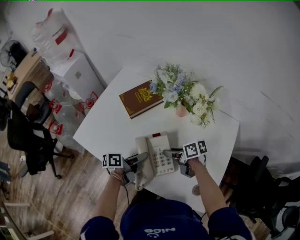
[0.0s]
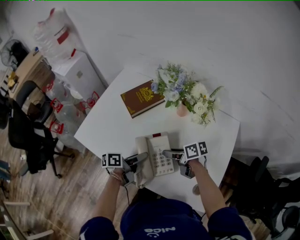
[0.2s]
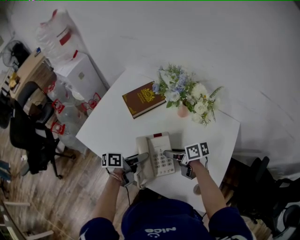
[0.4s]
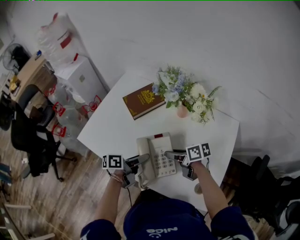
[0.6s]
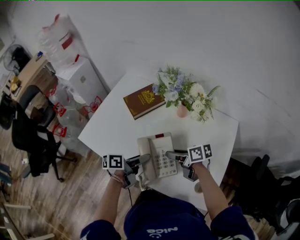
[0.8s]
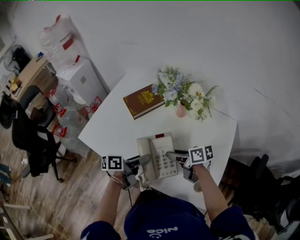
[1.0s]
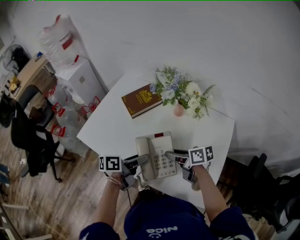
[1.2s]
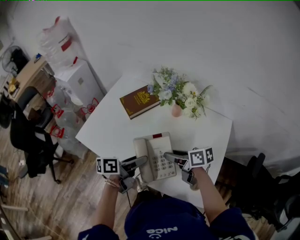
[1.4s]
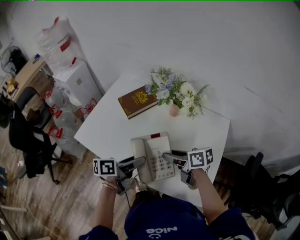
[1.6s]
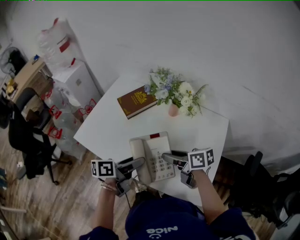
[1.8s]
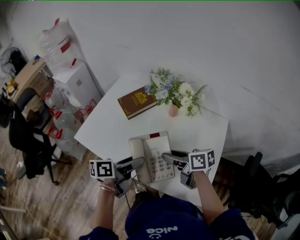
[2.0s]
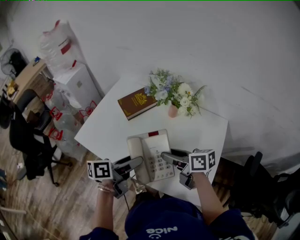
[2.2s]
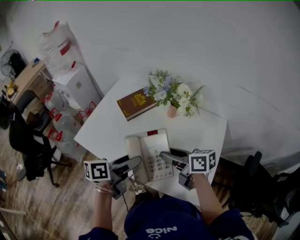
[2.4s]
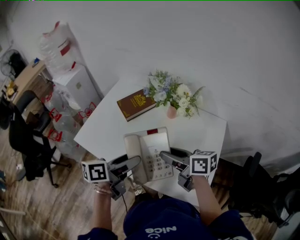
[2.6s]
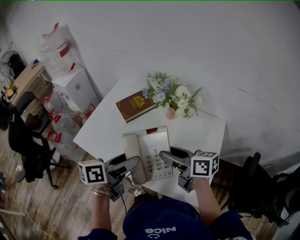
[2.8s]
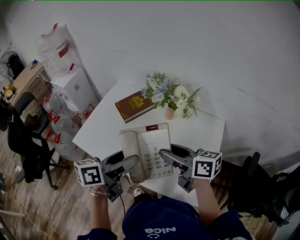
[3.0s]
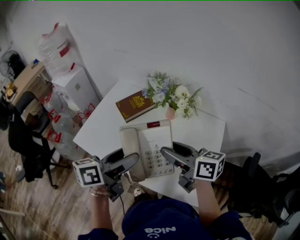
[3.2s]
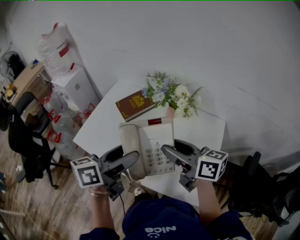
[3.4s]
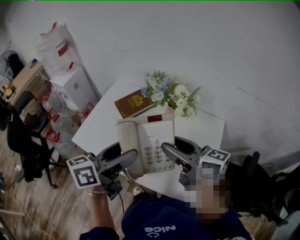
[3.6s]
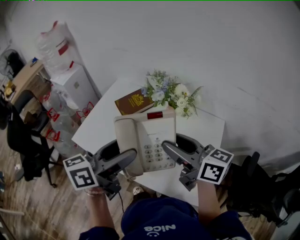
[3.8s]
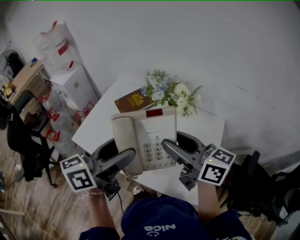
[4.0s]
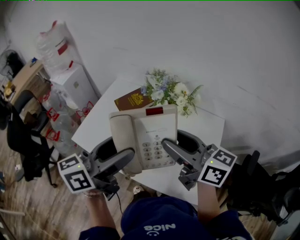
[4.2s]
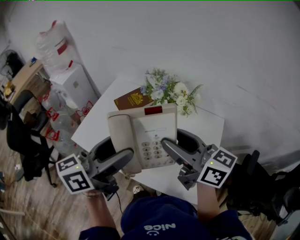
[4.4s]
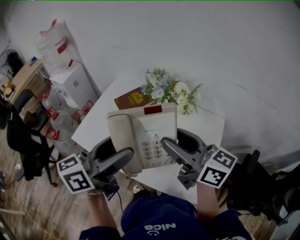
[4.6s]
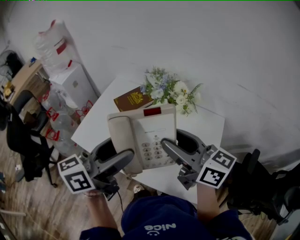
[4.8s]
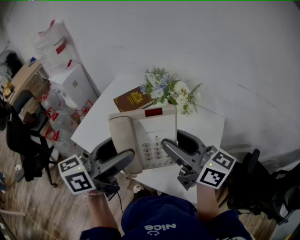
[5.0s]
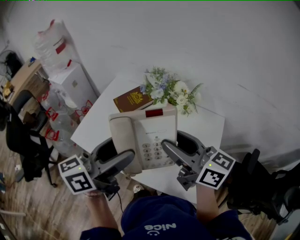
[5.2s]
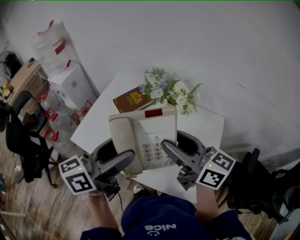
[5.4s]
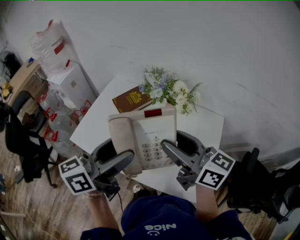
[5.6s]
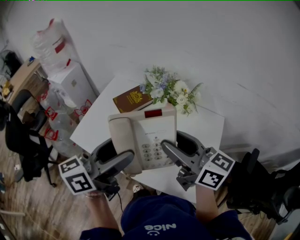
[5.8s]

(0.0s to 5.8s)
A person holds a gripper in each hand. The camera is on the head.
0.0s - 1.4s: Both grippers travel together upward, roughly 10 cm.
1.4s - 2.8s: Both grippers move upward, roughly 10 cm.
2.8s - 4.4s: Both grippers move upward, approximately 15 cm. The left gripper swivels about 30 degrees; the right gripper turns by roughly 30 degrees.
4.4s - 5.8s: There are only small adjustments of the grippers.

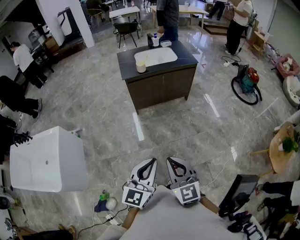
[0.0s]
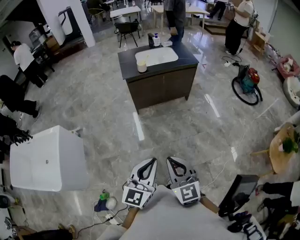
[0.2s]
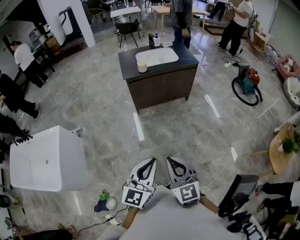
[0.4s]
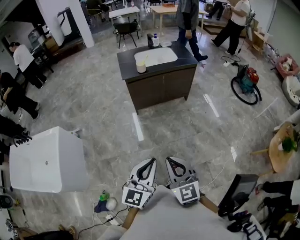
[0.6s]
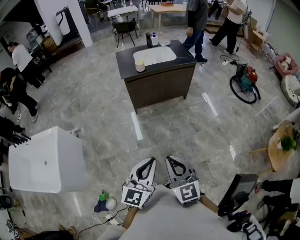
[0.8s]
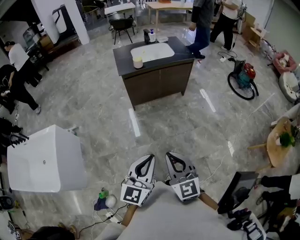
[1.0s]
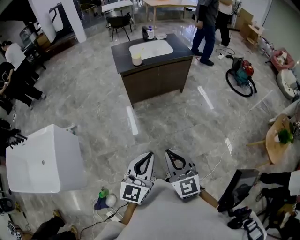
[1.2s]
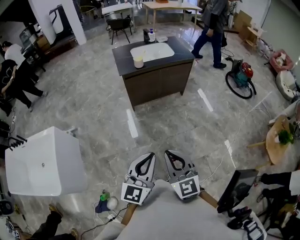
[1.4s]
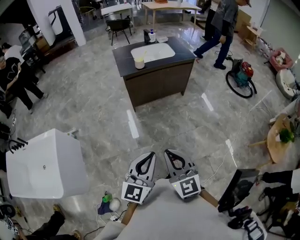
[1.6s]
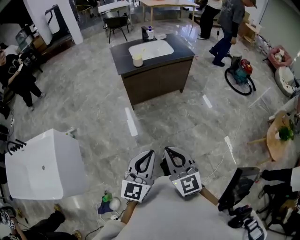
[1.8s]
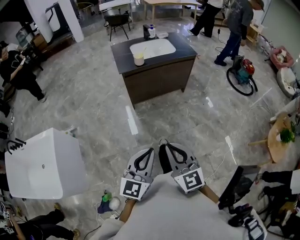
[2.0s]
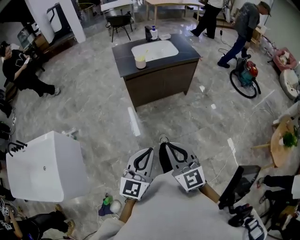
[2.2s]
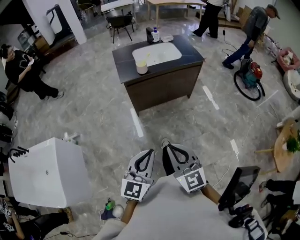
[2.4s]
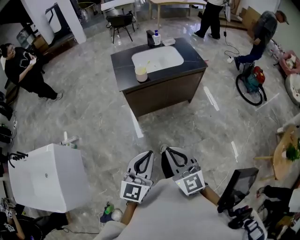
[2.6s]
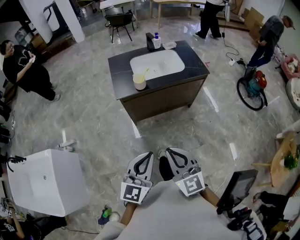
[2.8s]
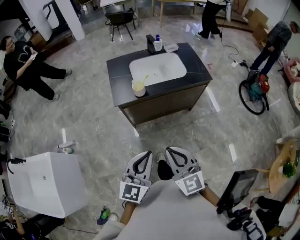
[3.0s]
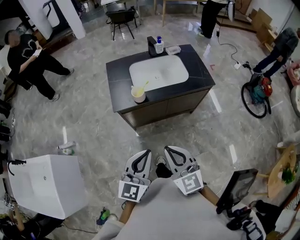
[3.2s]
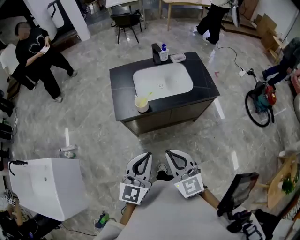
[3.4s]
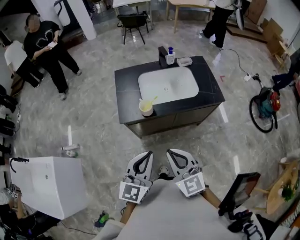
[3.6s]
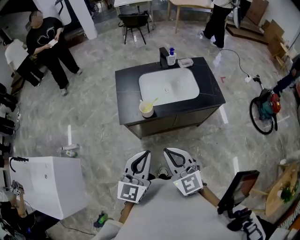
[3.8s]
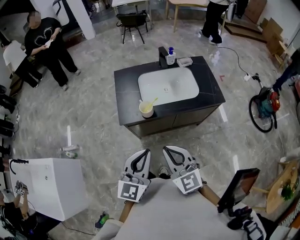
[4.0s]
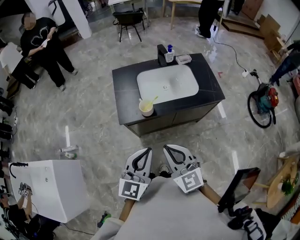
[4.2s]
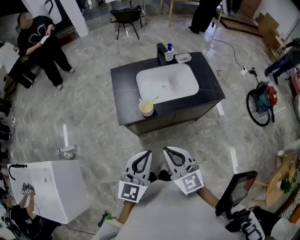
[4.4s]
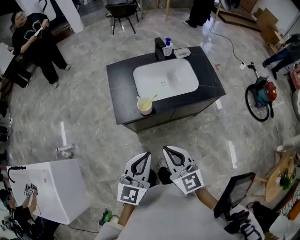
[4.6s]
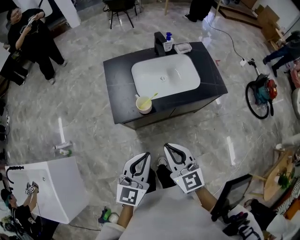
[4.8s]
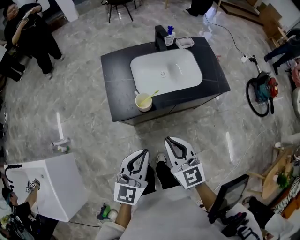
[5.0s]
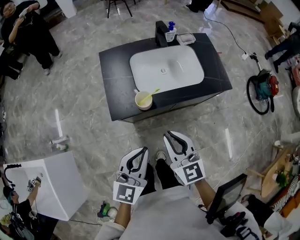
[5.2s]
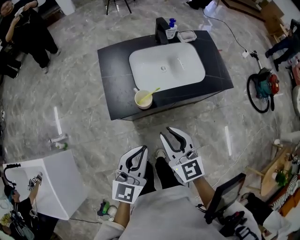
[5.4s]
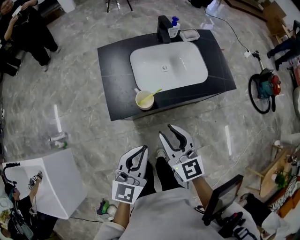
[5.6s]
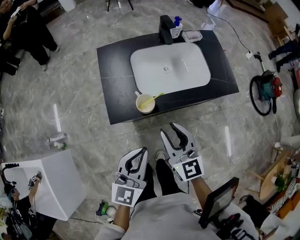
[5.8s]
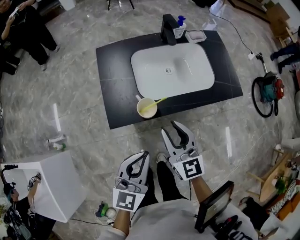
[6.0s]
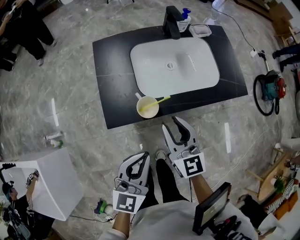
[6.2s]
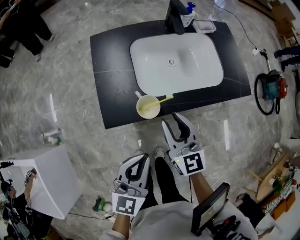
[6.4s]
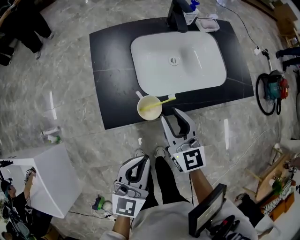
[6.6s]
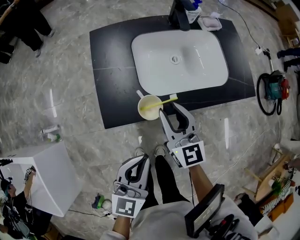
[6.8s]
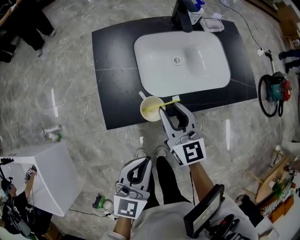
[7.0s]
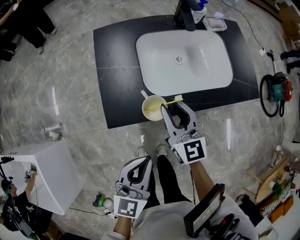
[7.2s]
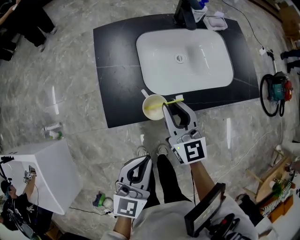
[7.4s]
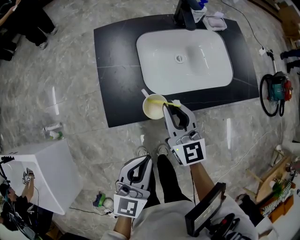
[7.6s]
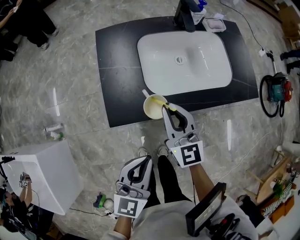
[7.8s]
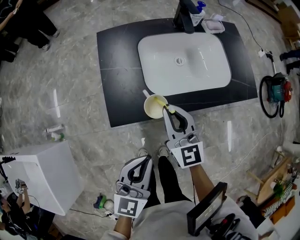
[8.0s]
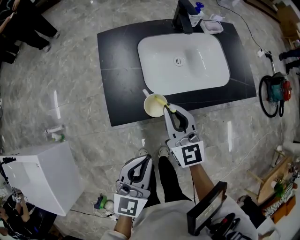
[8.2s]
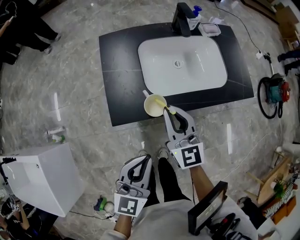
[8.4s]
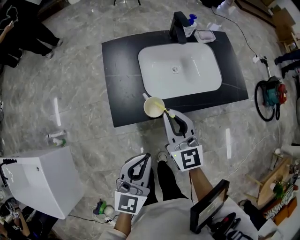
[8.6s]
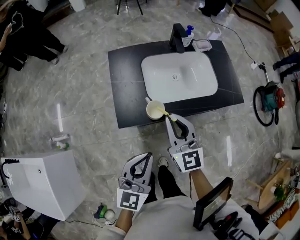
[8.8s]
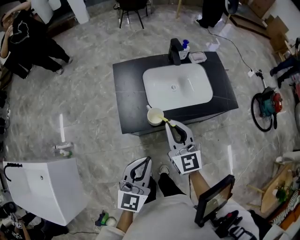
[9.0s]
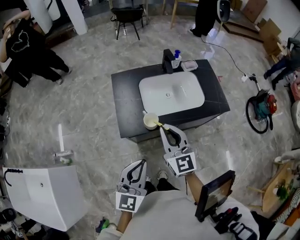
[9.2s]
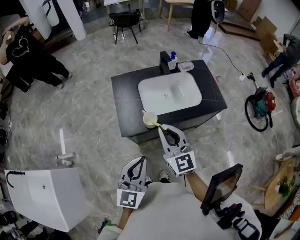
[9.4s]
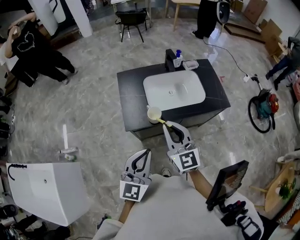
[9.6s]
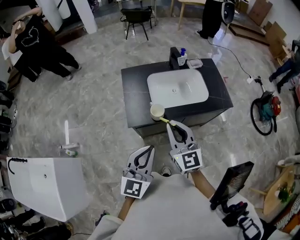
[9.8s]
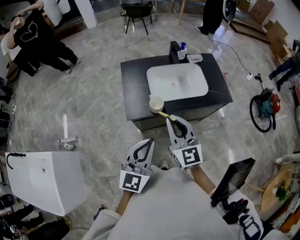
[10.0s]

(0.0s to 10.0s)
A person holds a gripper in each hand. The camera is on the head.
0.0s - 1.4s: The left gripper moves approximately 5 cm; the right gripper changes place by about 5 cm.
1.4s - 2.8s: The two grippers go some 25 cm forward.
2.8s - 4.2s: Both grippers travel together forward, about 20 cm.
4.2s - 5.8s: The left gripper moves downward and forward, about 10 cm. Meanwhile the right gripper moves forward and downward, approximately 15 cm, rotates approximately 20 degrees, and opens up.
5.8s - 7.2s: The left gripper goes about 10 cm downward. Meanwhile the right gripper goes about 15 cm forward and downward.
7.2s - 8.6s: The right gripper goes approximately 5 cm upward, and closes up.
8.6s - 10.0s: The left gripper heads upward, covering some 10 cm, and swivels some 20 degrees. The right gripper shifts about 15 cm upward and backward.

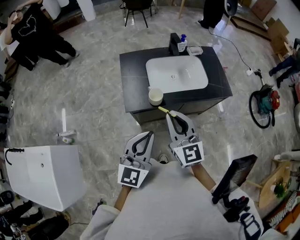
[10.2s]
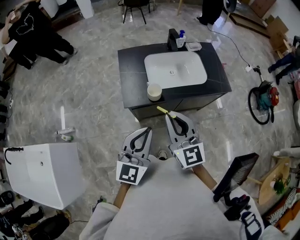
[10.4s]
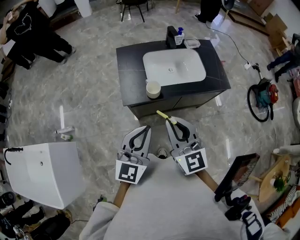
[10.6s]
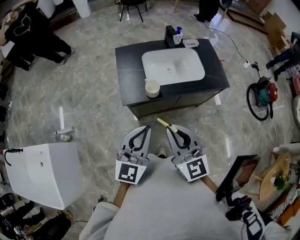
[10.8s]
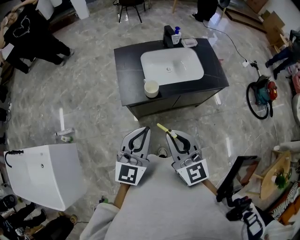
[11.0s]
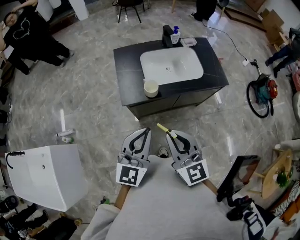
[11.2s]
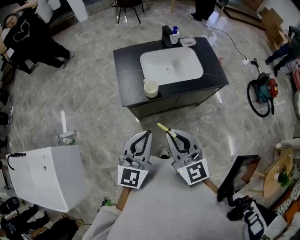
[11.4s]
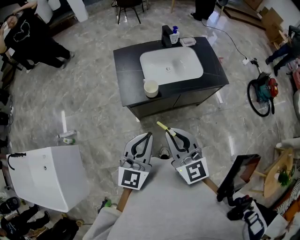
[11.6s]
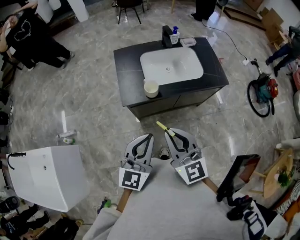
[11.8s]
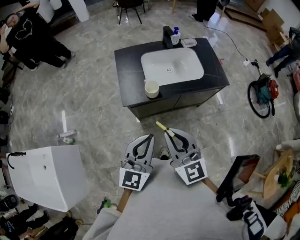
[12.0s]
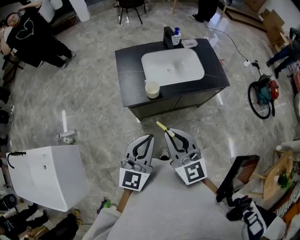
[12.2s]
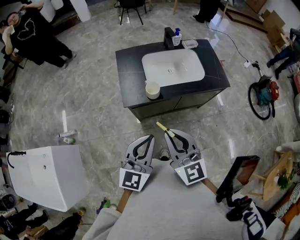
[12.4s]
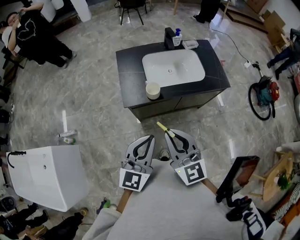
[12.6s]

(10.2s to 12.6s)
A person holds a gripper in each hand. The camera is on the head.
10.2s - 11.4s: The right gripper goes roughly 10 cm backward.
11.4s - 12.6s: The grippers move only a little.

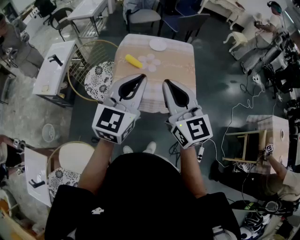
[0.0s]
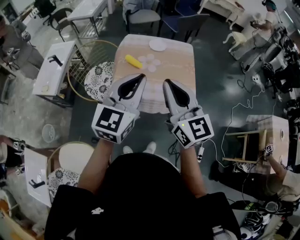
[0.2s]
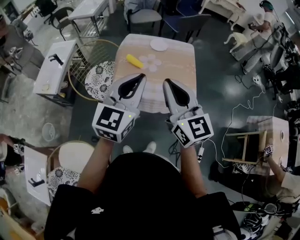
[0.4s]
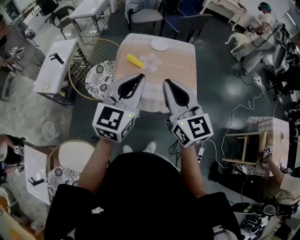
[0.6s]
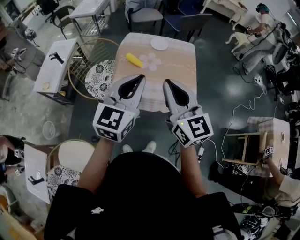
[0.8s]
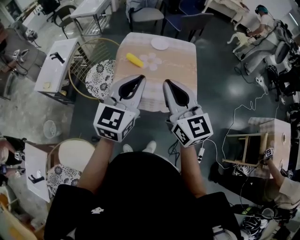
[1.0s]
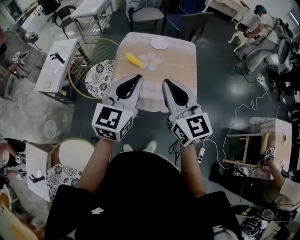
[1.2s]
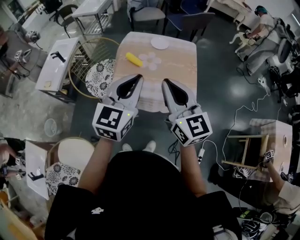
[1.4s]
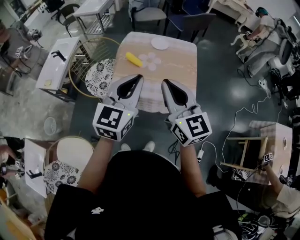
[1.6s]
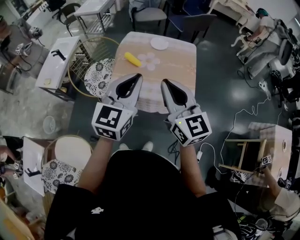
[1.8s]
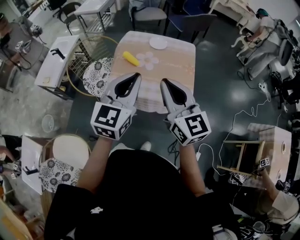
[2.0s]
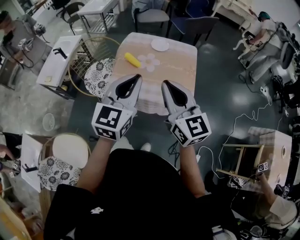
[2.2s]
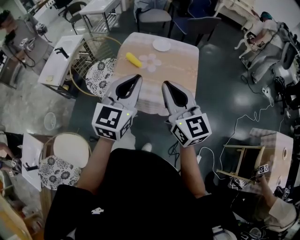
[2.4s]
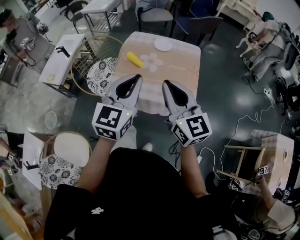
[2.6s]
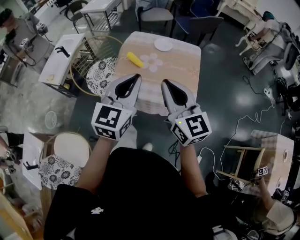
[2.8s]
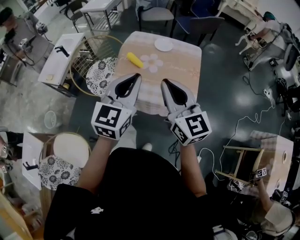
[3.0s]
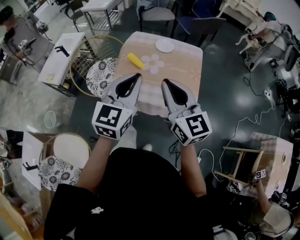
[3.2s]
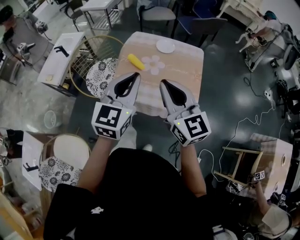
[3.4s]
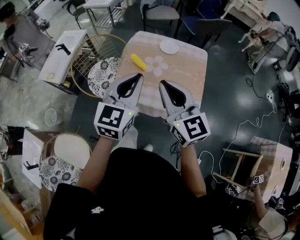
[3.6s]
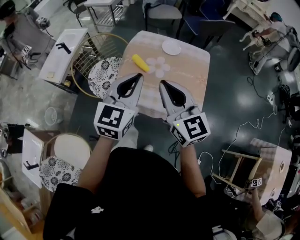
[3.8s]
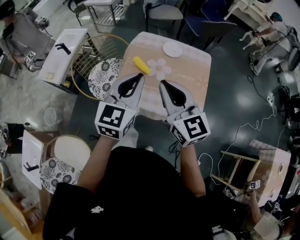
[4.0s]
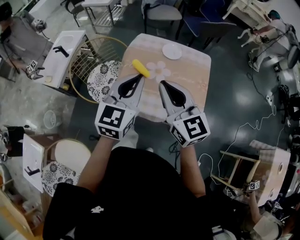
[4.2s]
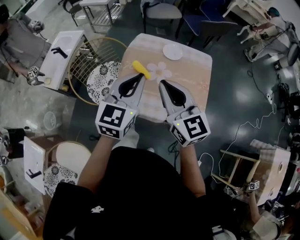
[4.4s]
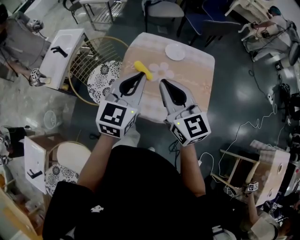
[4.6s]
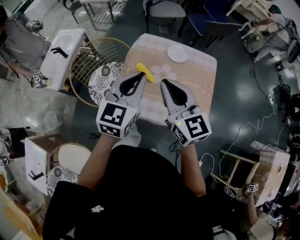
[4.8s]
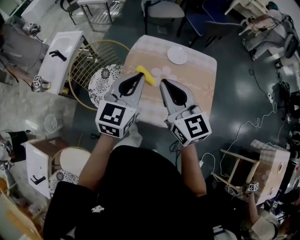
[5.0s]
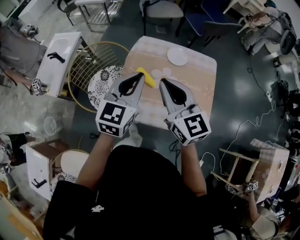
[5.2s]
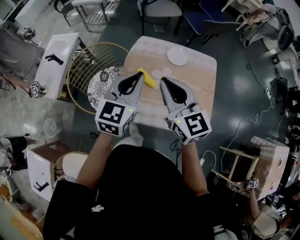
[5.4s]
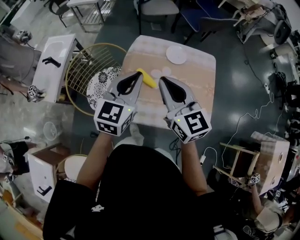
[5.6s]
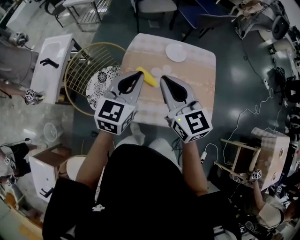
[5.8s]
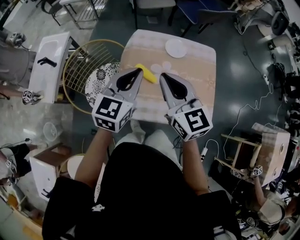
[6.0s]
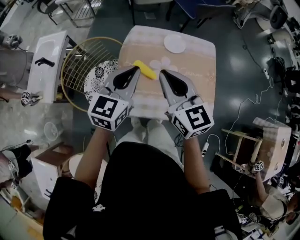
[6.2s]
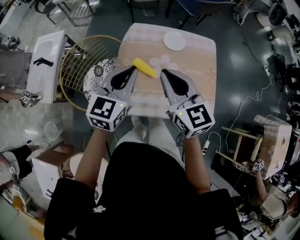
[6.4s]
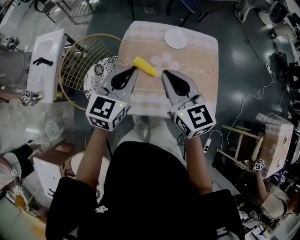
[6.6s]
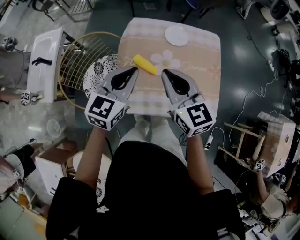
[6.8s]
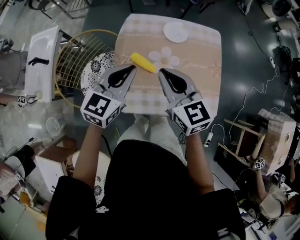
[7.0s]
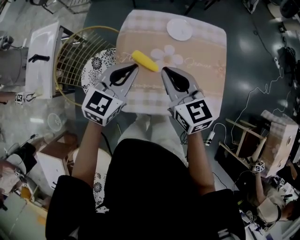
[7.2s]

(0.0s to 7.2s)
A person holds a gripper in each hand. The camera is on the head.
0.0s - 1.4s: The grippers make only small movements.
1.4s - 2.8s: The grippers make only small movements.
2.8s - 4.4s: Both grippers travel together forward, approximately 15 cm.
4.4s - 5.8s: Both grippers travel together forward, roughly 10 cm.
5.8s - 7.2s: The left gripper heads downward, covering some 10 cm; the right gripper goes about 15 cm downward and forward.
